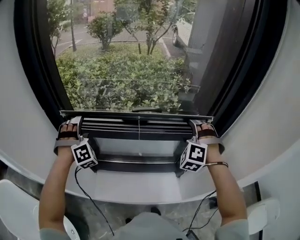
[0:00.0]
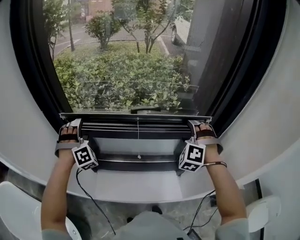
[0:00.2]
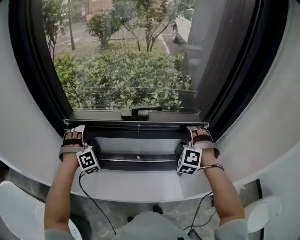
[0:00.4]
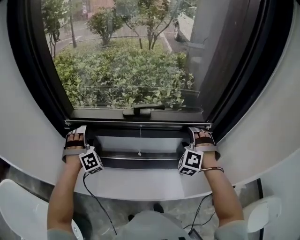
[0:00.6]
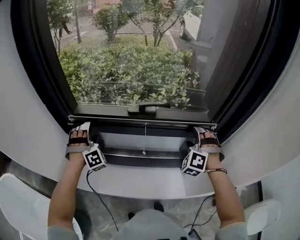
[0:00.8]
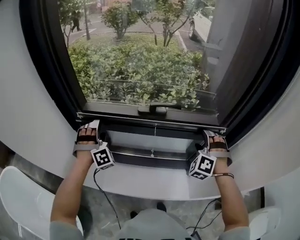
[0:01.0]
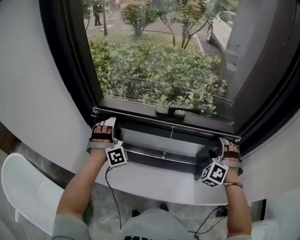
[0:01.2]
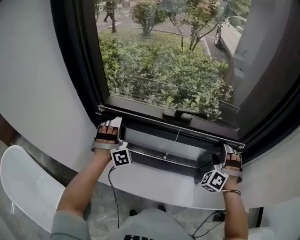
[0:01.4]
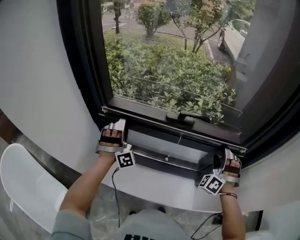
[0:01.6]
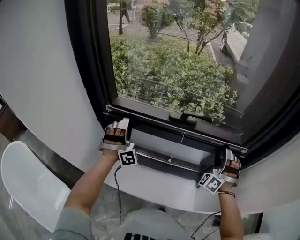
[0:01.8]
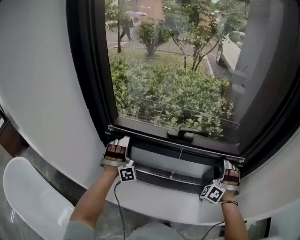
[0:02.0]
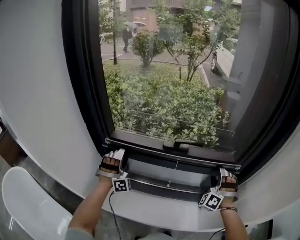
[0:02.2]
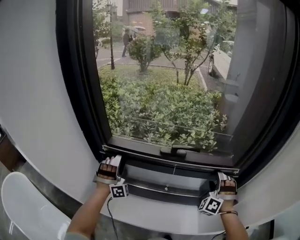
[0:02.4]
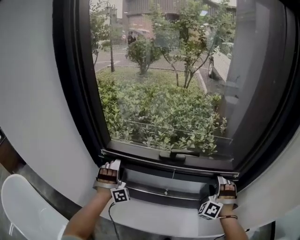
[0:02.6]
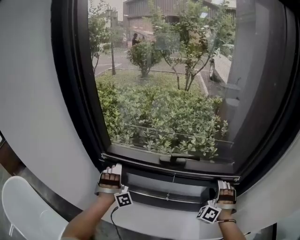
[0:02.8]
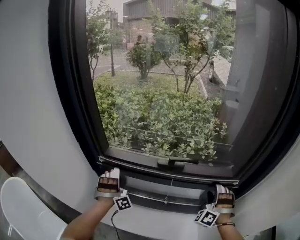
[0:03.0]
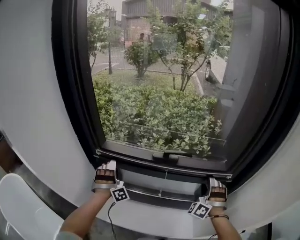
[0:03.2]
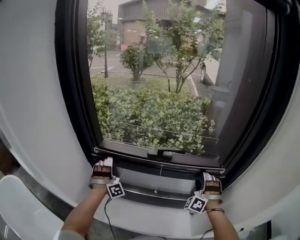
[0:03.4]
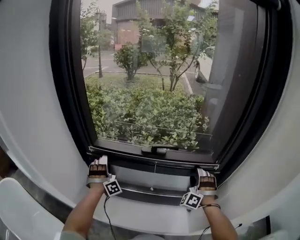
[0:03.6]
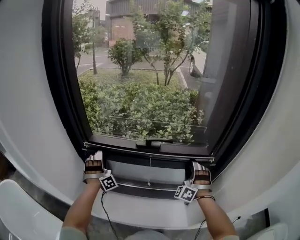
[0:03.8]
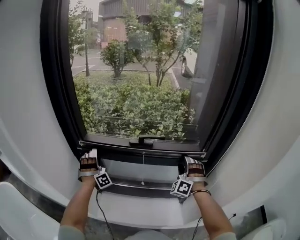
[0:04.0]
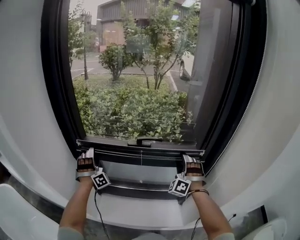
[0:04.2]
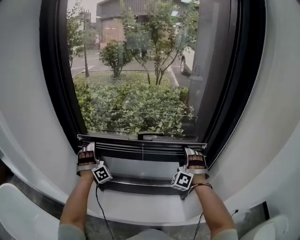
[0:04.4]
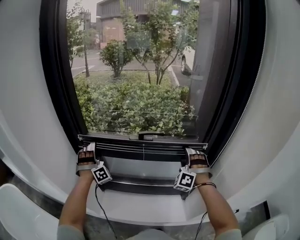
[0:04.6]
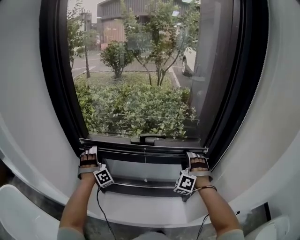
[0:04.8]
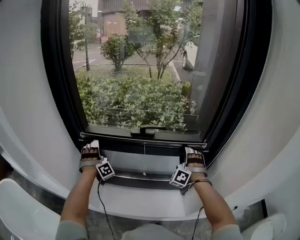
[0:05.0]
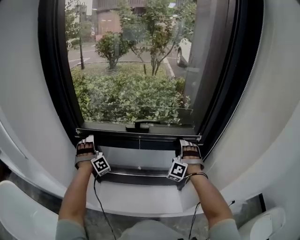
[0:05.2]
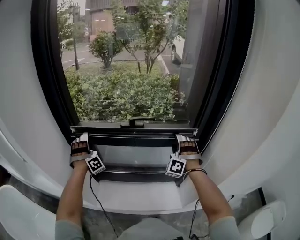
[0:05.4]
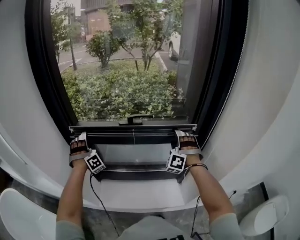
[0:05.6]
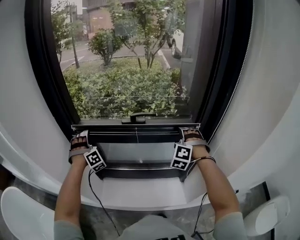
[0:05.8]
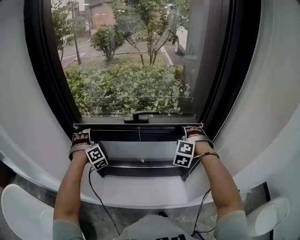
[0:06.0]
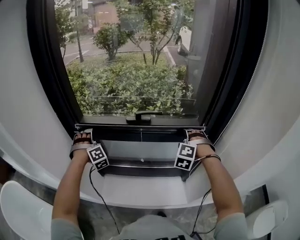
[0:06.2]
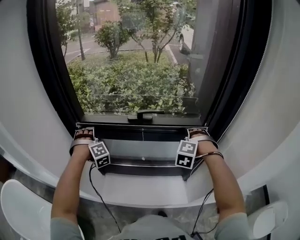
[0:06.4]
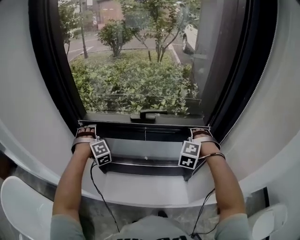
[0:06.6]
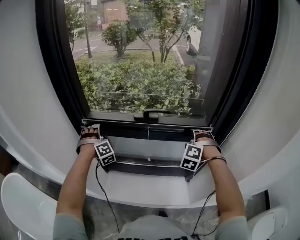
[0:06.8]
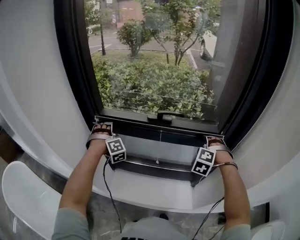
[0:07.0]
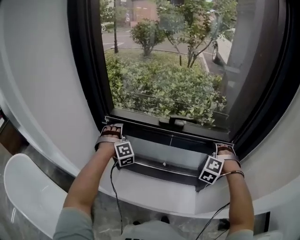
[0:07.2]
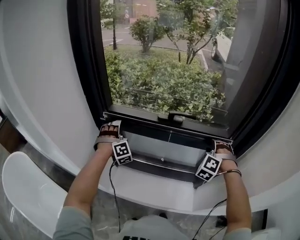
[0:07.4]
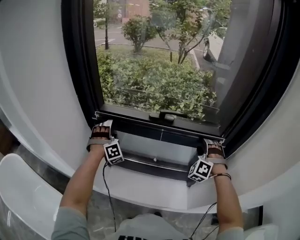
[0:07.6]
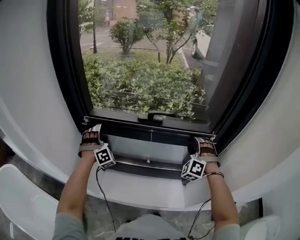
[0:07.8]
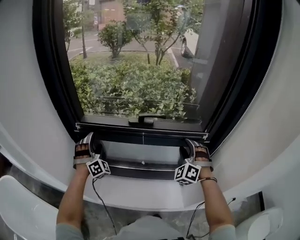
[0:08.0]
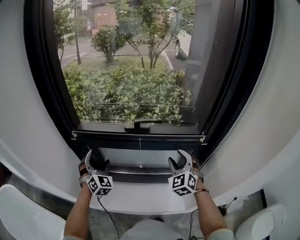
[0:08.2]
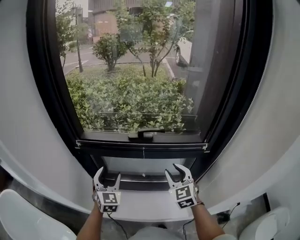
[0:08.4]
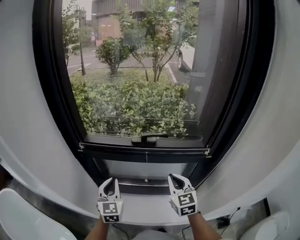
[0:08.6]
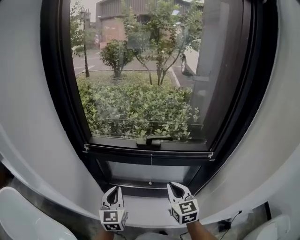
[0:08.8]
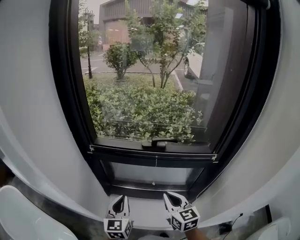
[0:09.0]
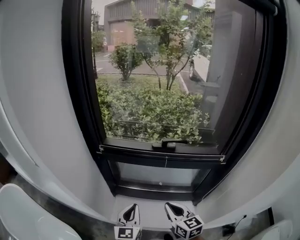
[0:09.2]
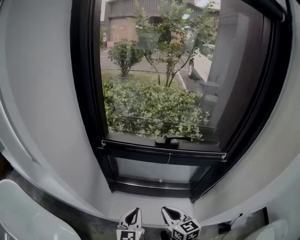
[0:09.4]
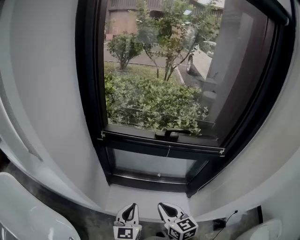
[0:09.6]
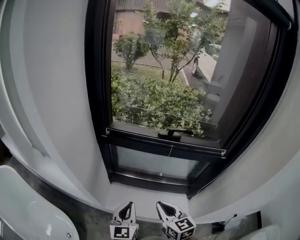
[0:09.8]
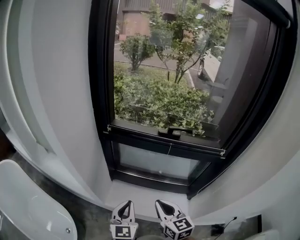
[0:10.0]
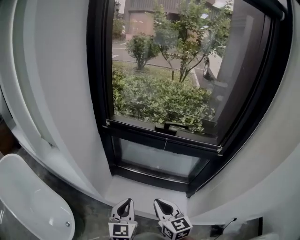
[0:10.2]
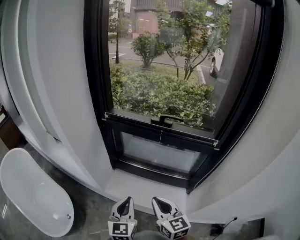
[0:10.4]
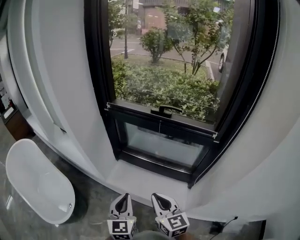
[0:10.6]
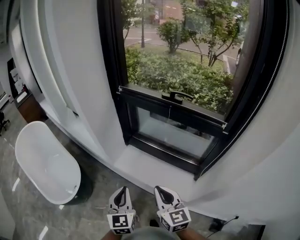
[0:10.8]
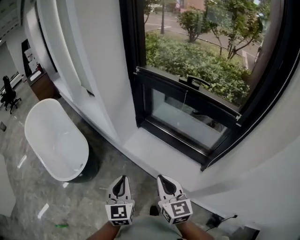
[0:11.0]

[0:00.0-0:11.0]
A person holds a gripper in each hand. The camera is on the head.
0:00.0 to 0:01.6: The two grippers go approximately 5 cm downward.
0:01.6 to 0:04.8: The grippers move only a little.
0:04.8 to 0:06.2: The right gripper swivels roughly 30 degrees. Meanwhile the left gripper rotates about 20 degrees.
0:06.2 to 0:07.8: The right gripper turns by about 20 degrees.
0:07.8 to 0:09.4: The right gripper is displaced to the left and backward by some 30 cm, rolls clockwise, seen from behind, by roughly 80 degrees, and closes up, while the left gripper is displaced backward by roughly 25 cm, rolls counterclockwise, seen from behind, by some 90 degrees, and closes up.
0:09.4 to 0:11.0: The right gripper moves roughly 20 cm, and turns by approximately 20 degrees. Meanwhile the left gripper ends up approximately 30 cm from where it was, and rotates about 40 degrees.

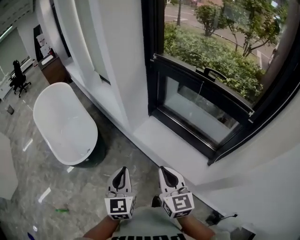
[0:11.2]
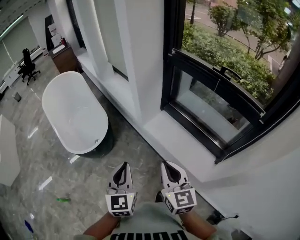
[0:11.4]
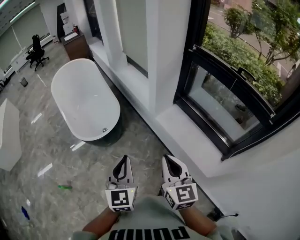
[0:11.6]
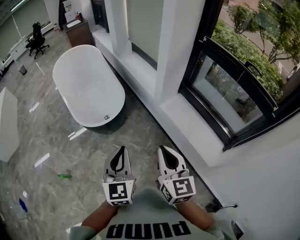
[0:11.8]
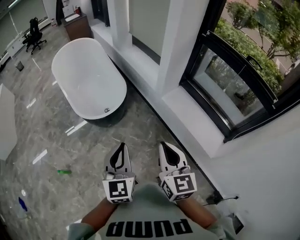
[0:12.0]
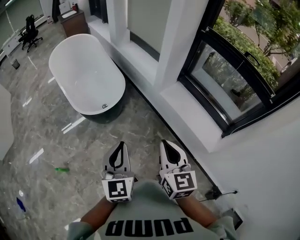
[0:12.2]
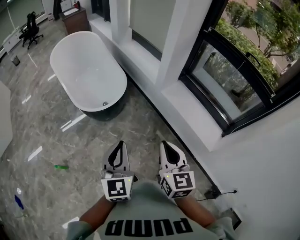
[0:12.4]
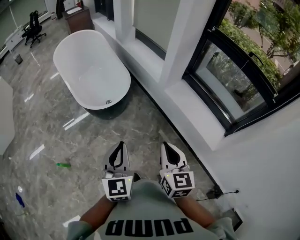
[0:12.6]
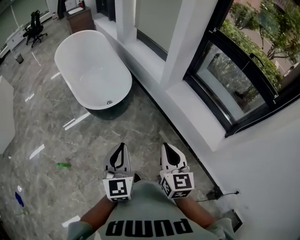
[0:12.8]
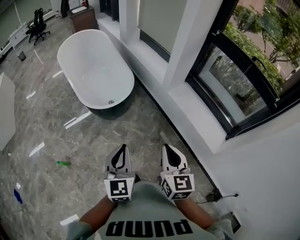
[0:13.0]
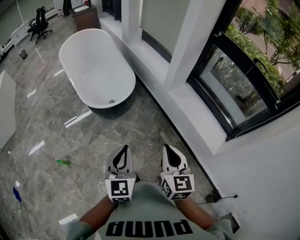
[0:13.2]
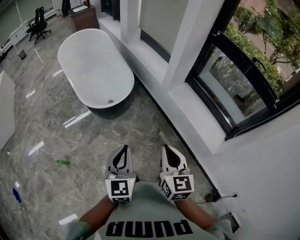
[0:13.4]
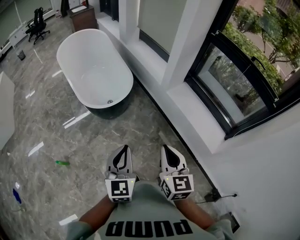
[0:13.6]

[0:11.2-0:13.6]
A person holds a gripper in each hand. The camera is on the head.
0:11.2 to 0:12.4: Both grippers travel together to the left and backward, about 35 cm.
0:12.4 to 0:13.6: The grippers move only a little.

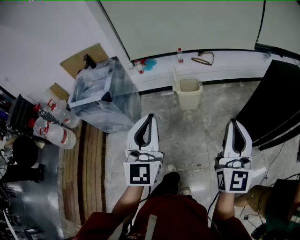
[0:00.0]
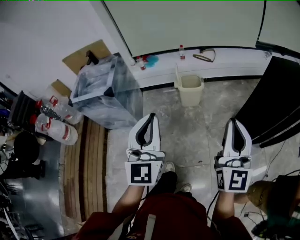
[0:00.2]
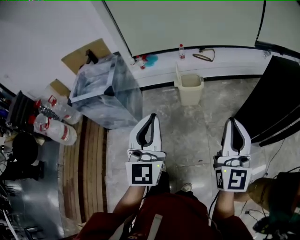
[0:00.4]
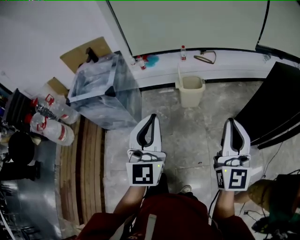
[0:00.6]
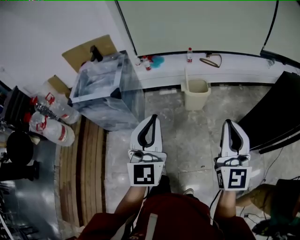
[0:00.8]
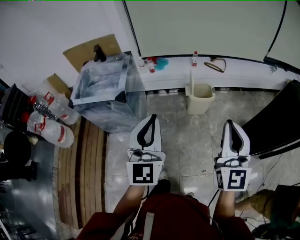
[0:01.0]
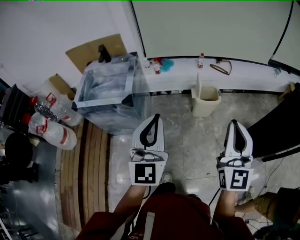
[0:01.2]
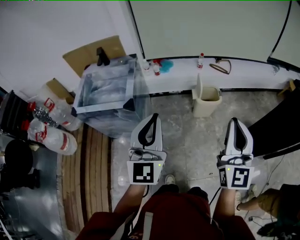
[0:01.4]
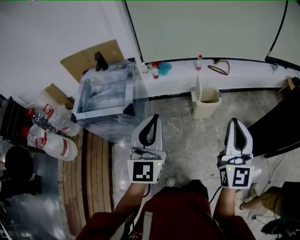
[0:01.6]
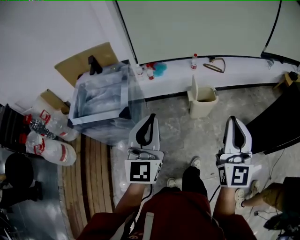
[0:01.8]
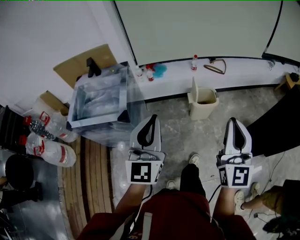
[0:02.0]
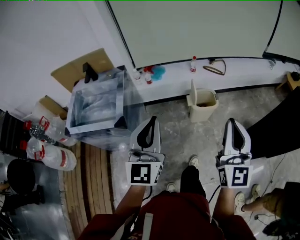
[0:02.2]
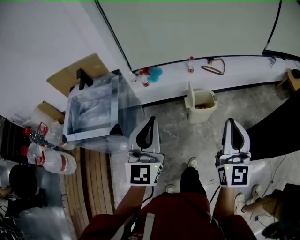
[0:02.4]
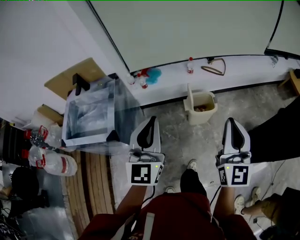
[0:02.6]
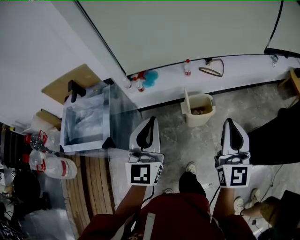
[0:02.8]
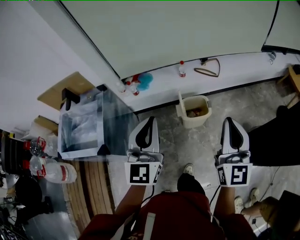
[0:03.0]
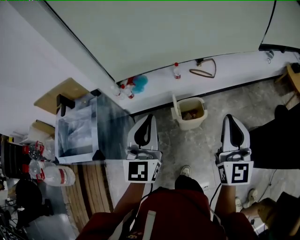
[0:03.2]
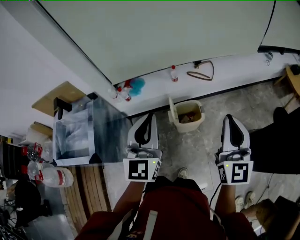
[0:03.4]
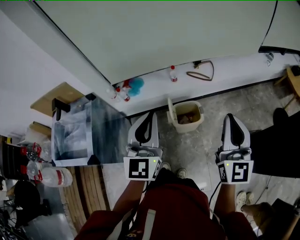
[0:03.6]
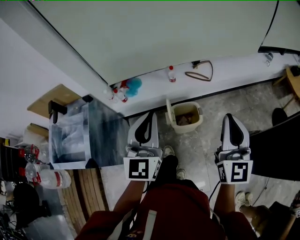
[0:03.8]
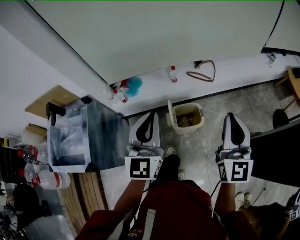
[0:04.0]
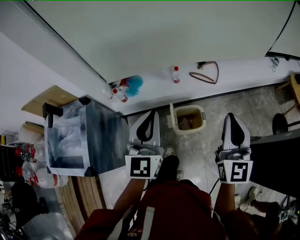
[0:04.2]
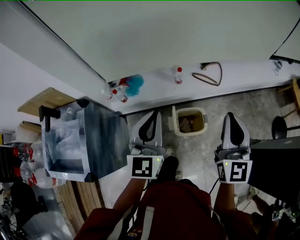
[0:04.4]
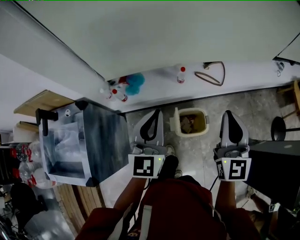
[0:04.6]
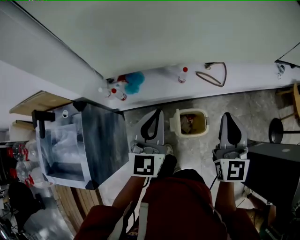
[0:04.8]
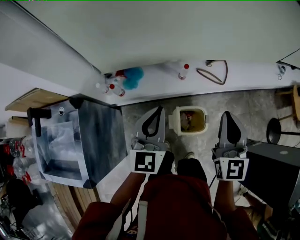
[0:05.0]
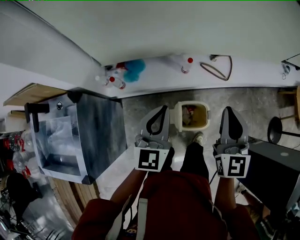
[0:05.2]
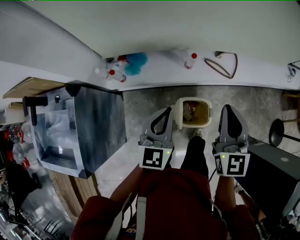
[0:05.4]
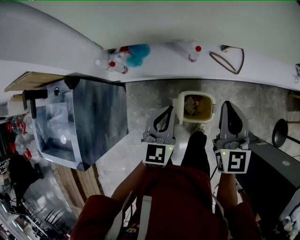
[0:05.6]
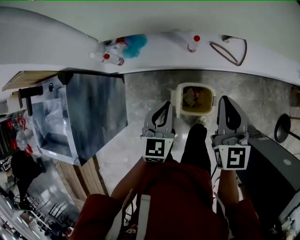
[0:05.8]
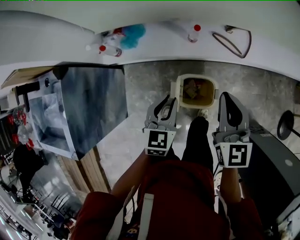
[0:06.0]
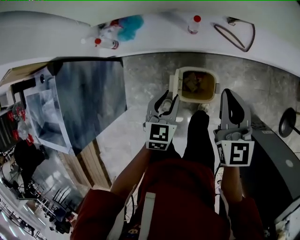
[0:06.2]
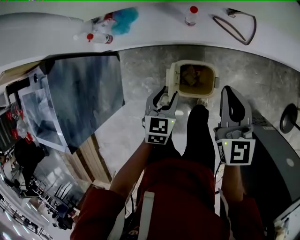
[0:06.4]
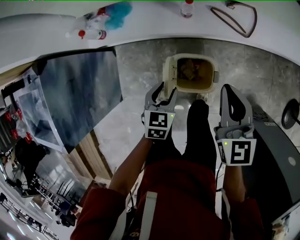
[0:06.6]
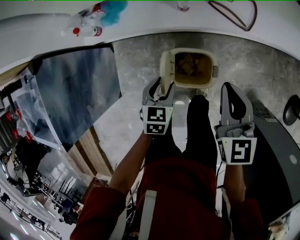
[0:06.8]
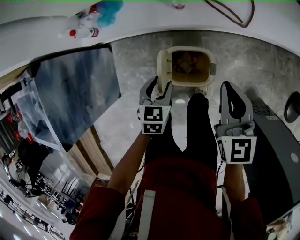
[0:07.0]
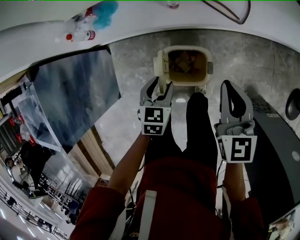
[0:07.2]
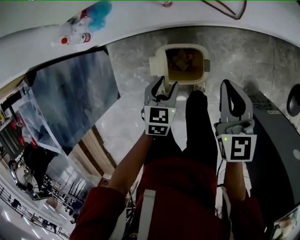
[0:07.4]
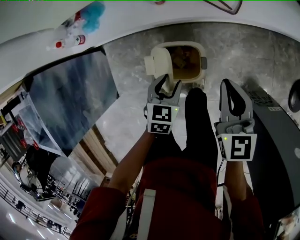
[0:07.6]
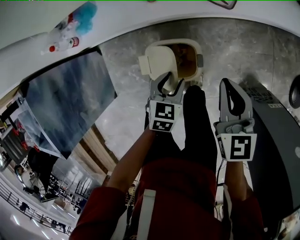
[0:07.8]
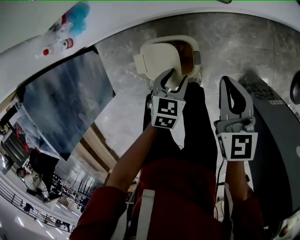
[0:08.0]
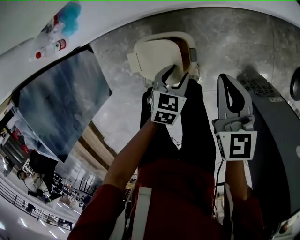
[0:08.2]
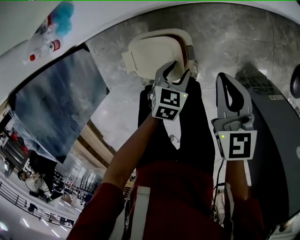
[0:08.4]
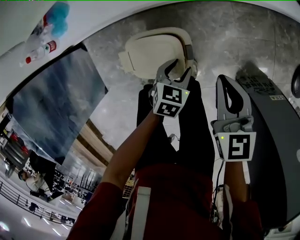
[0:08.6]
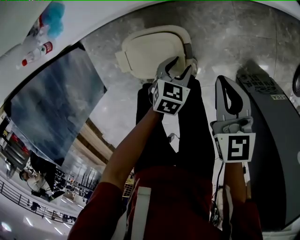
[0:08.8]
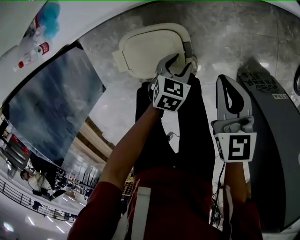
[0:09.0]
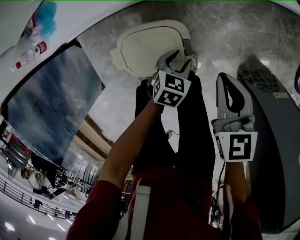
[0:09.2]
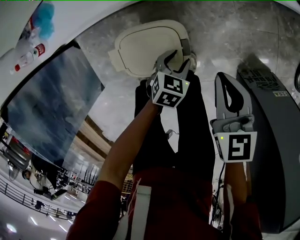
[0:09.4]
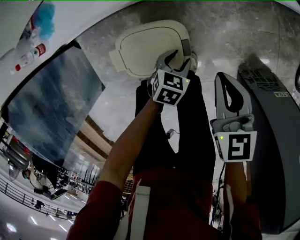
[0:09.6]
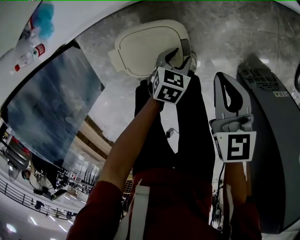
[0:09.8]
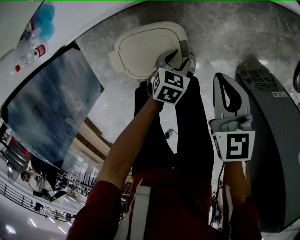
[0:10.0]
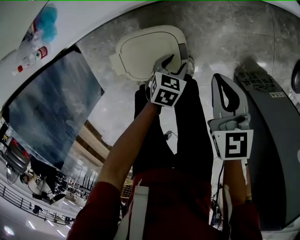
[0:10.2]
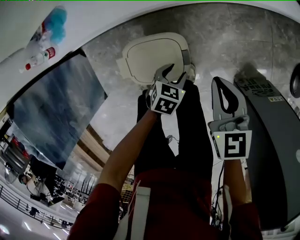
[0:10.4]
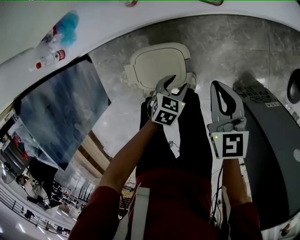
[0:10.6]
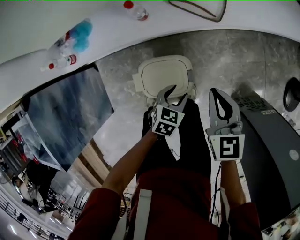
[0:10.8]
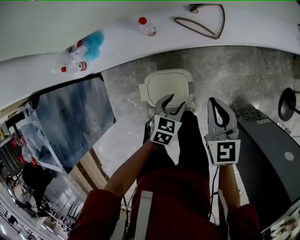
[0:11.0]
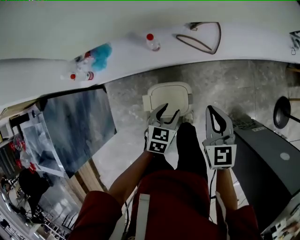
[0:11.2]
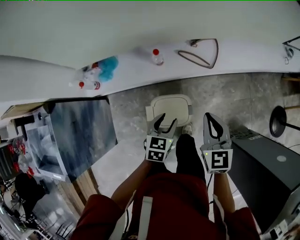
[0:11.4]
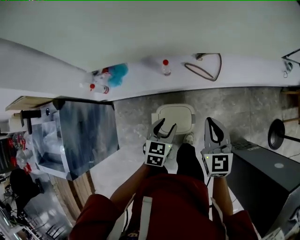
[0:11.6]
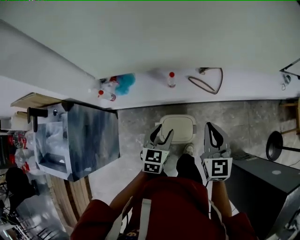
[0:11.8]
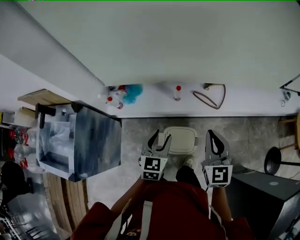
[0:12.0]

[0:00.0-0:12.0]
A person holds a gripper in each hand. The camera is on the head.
0:00.0 to 0:01.6: Both grippers travel together to the left and forward, approximately 30 cm.
0:01.6 to 0:03.0: Both grippers travel together forward and to the right, about 30 cm.
0:03.0 to 0:04.4: The grippers both shift forward by roughly 25 cm.
0:04.4 to 0:06.0: The right gripper goes some 25 cm downward and forward, and swivels approximately 30 degrees. The left gripper goes roughly 30 cm downward, and angles its fingers downward, by approximately 30 degrees.
0:06.0 to 0:07.6: The right gripper heads to the right and downward, covering about 20 cm; the left gripper is displaced downward and to the right by about 20 cm, changes its angle by some 20 degrees, and opens up.
0:07.6 to 0:09.0: The grippers both shift downward and to the right by about 20 cm.
0:09.0 to 0:10.4: The grippers make only small movements.
0:10.4 to 0:12.0: The two grippers go roughly 40 cm upward and to the left. The left gripper tips its fingers upward by roughly 30 degrees. The right gripper swivels about 30 degrees.
